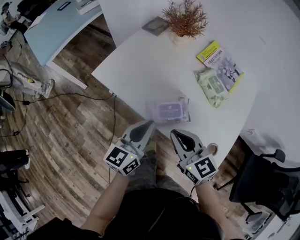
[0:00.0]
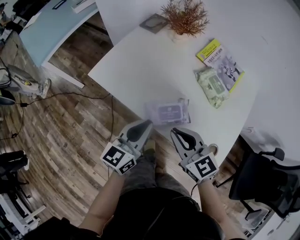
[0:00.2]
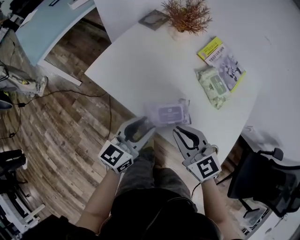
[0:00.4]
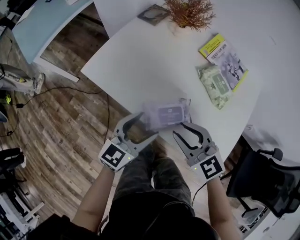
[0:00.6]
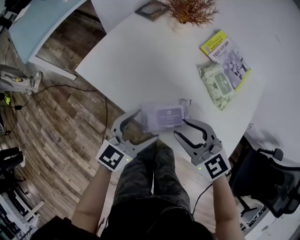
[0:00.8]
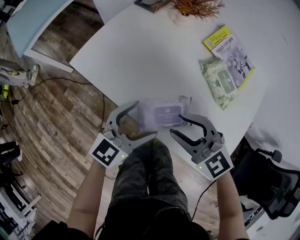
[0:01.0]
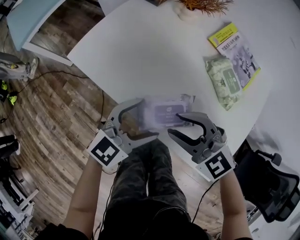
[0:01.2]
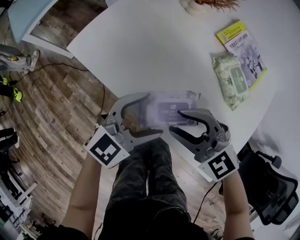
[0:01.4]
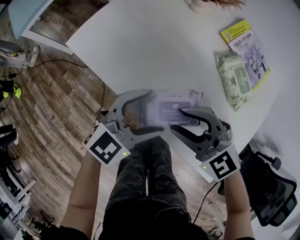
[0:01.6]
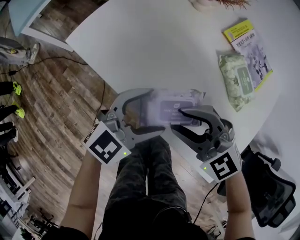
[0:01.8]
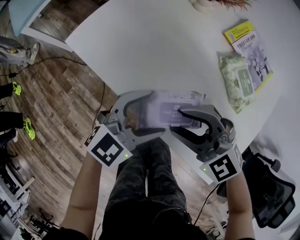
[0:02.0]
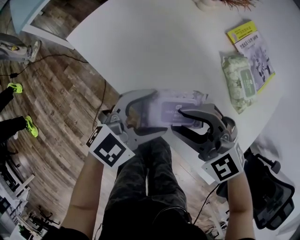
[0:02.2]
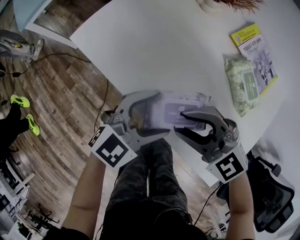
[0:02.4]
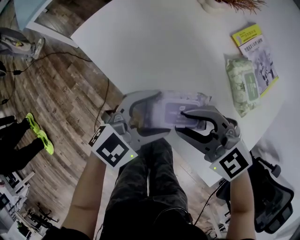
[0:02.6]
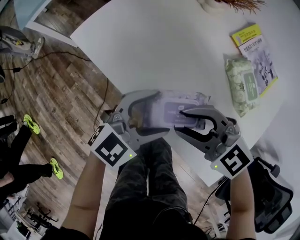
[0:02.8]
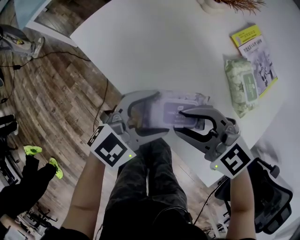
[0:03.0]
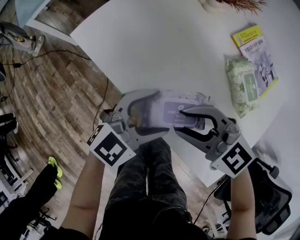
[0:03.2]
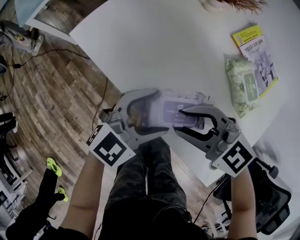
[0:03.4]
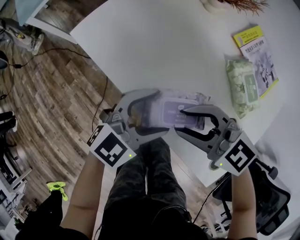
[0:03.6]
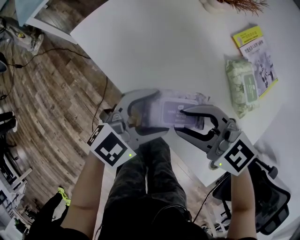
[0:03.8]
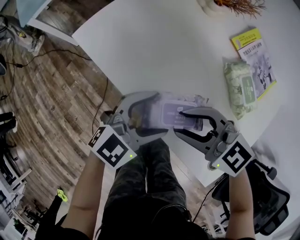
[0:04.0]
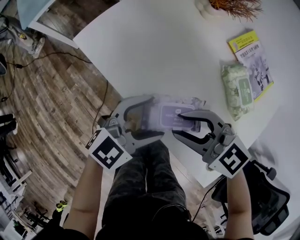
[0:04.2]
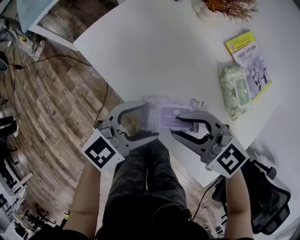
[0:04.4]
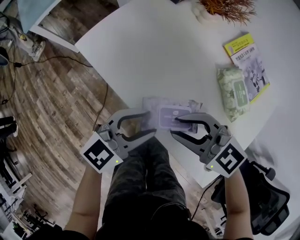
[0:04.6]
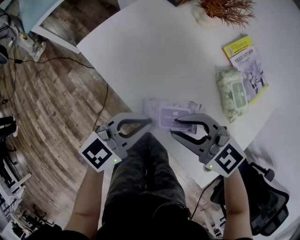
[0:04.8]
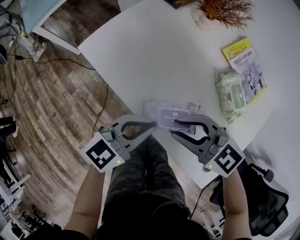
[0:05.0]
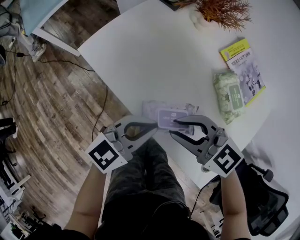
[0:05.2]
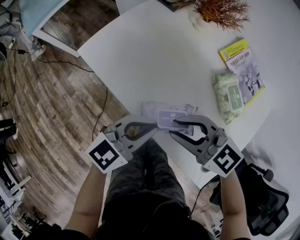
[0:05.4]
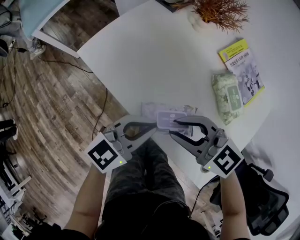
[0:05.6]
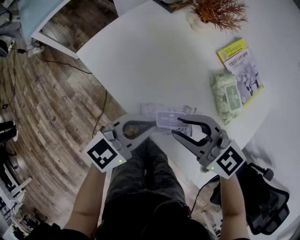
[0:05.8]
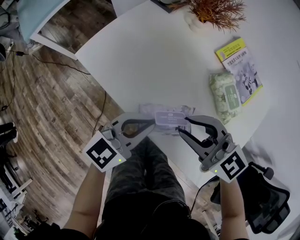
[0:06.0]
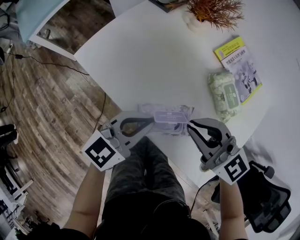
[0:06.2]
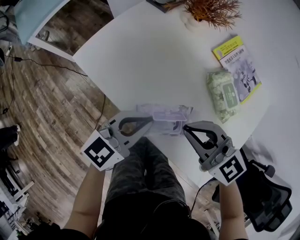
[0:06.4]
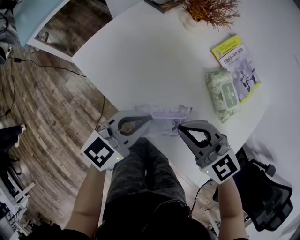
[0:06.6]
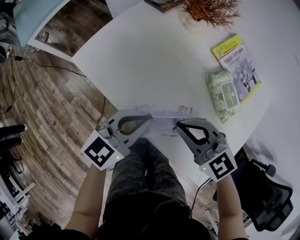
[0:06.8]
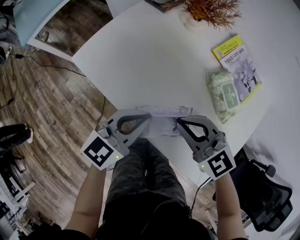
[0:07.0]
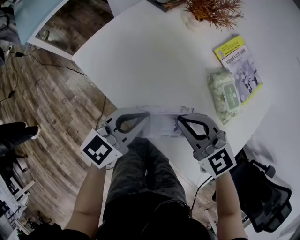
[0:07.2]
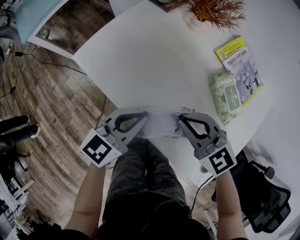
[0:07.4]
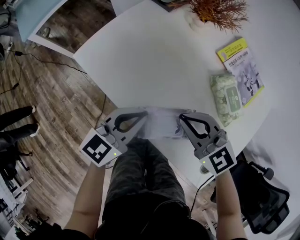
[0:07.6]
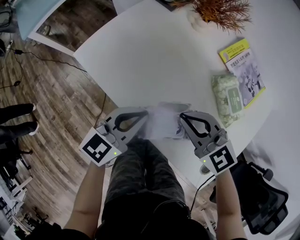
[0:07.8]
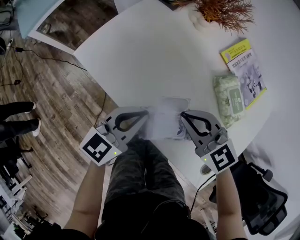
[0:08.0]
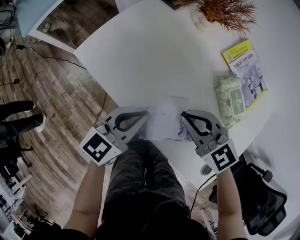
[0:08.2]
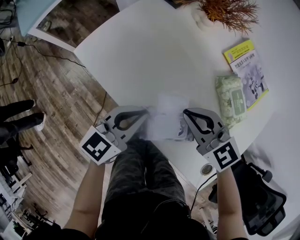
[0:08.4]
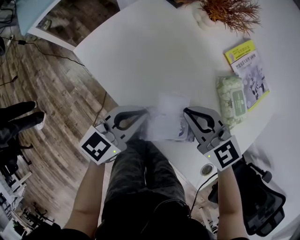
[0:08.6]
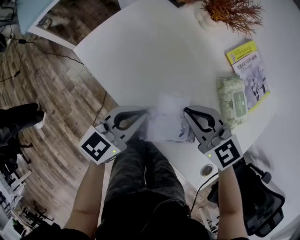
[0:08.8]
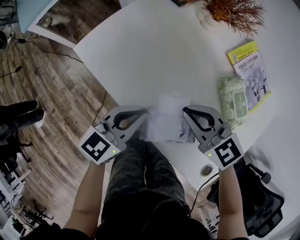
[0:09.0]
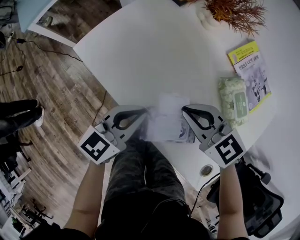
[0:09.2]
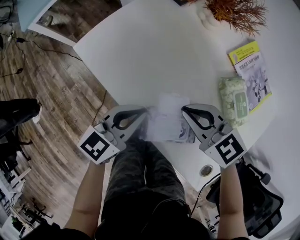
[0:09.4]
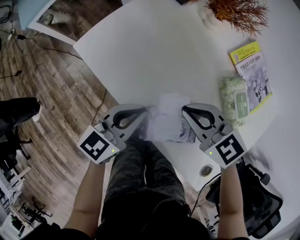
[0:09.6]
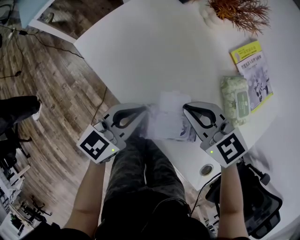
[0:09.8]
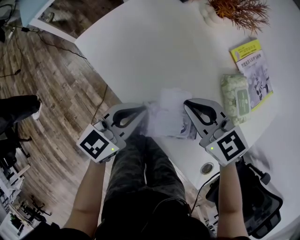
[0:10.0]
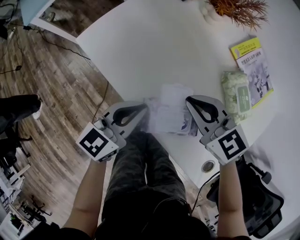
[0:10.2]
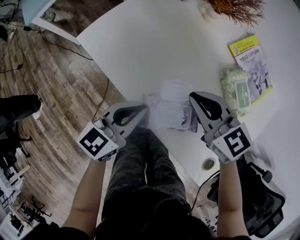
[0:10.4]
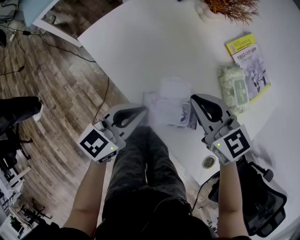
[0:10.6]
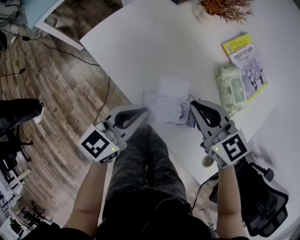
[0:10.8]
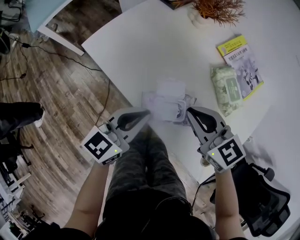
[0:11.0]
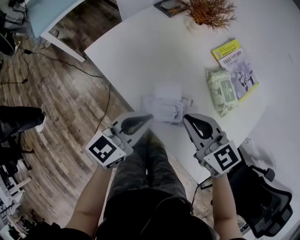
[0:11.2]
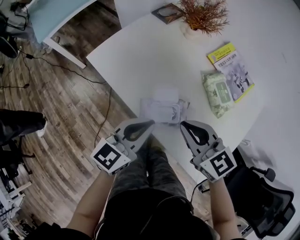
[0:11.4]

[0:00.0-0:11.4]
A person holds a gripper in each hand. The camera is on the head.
0:00.0 to 0:01.4: The left gripper travels downward by roughly 5 cm, changes its angle by about 40 degrees, and opens; the right gripper changes place by about 5 cm, turns by approximately 40 degrees, and opens its fingers.
0:01.4 to 0:04.2: The grippers move only a little.
0:04.2 to 0:05.6: The left gripper closes up.
0:05.6 to 0:07.2: The right gripper closes its fingers.
0:07.2 to 0:10.0: The grippers move only a little.
0:10.0 to 0:11.4: The right gripper is displaced backward and upward by some 10 cm. The left gripper goes roughly 10 cm upward and backward.

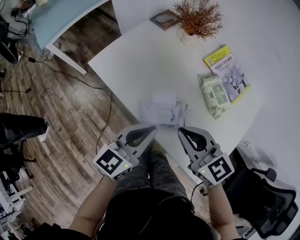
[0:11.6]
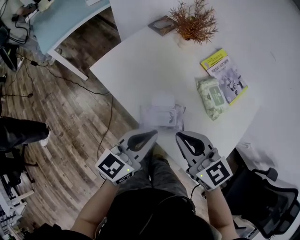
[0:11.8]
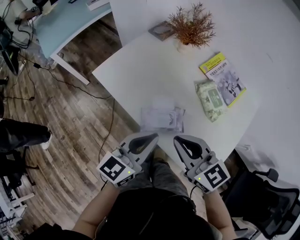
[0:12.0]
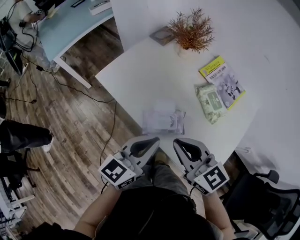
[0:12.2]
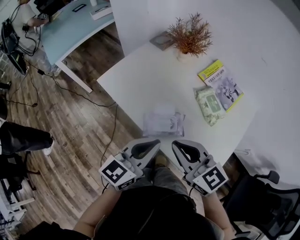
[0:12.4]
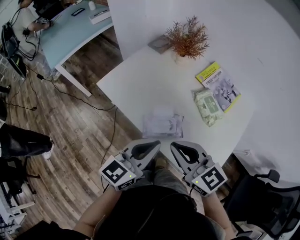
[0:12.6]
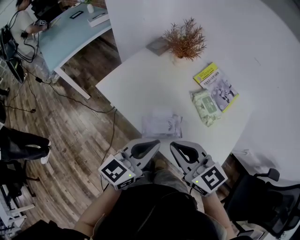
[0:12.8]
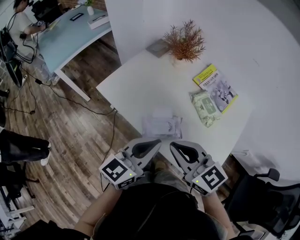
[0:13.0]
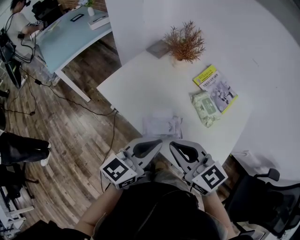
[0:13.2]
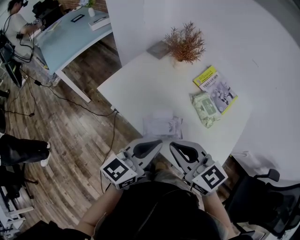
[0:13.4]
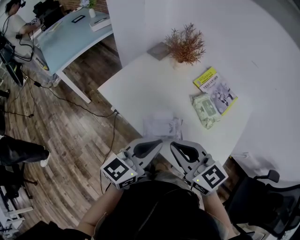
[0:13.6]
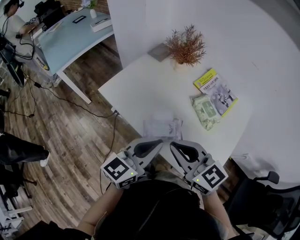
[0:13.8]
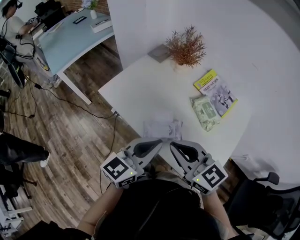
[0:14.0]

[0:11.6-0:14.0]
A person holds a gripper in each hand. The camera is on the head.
0:11.6 to 0:12.8: Both grippers travel together upward, about 5 cm.
0:12.8 to 0:14.0: Neither gripper changes place.

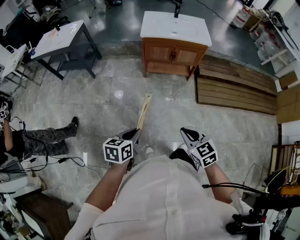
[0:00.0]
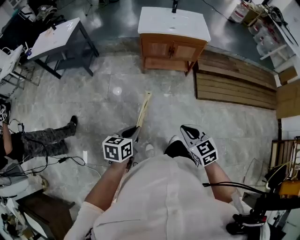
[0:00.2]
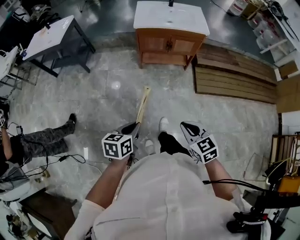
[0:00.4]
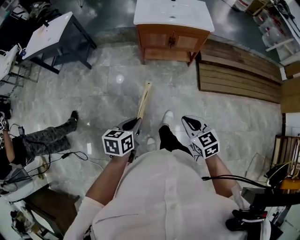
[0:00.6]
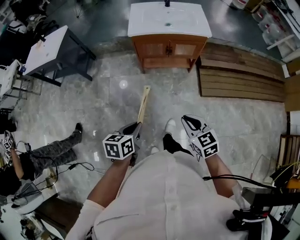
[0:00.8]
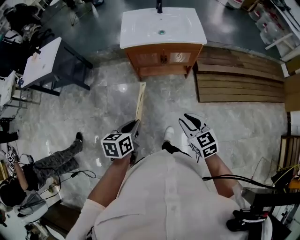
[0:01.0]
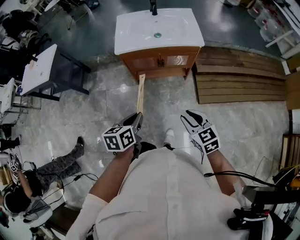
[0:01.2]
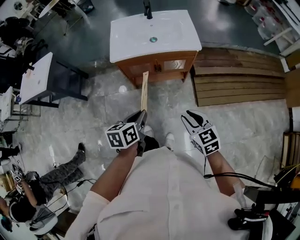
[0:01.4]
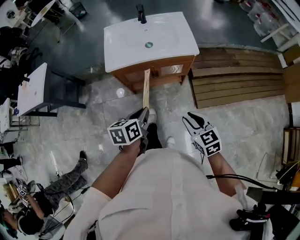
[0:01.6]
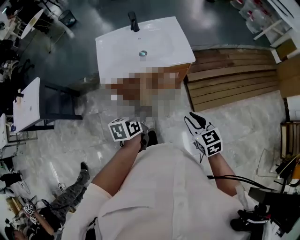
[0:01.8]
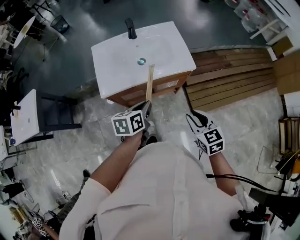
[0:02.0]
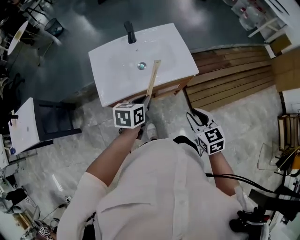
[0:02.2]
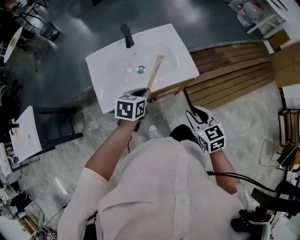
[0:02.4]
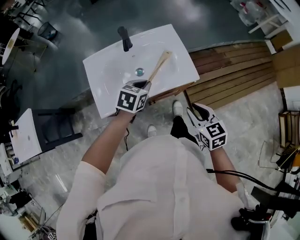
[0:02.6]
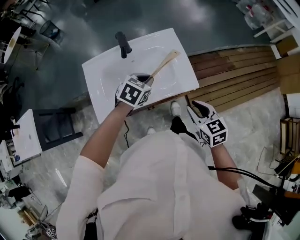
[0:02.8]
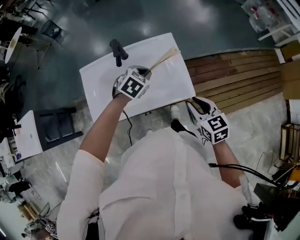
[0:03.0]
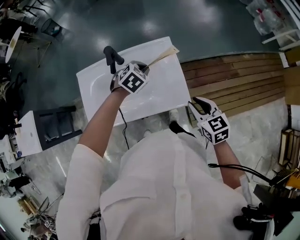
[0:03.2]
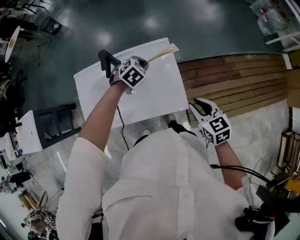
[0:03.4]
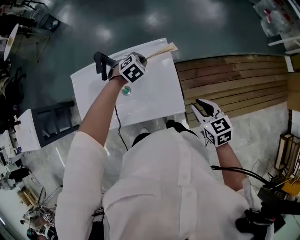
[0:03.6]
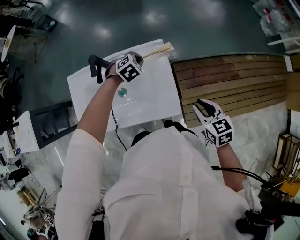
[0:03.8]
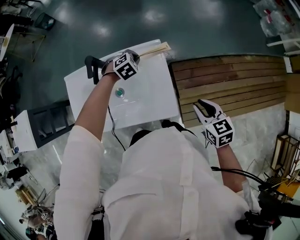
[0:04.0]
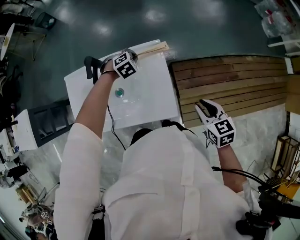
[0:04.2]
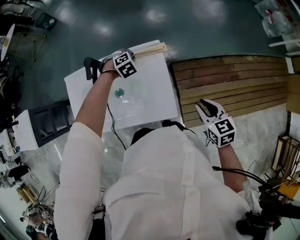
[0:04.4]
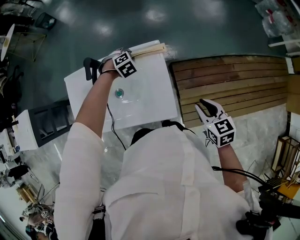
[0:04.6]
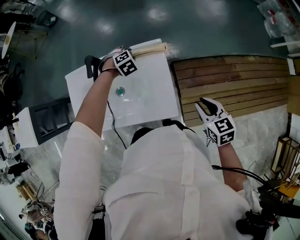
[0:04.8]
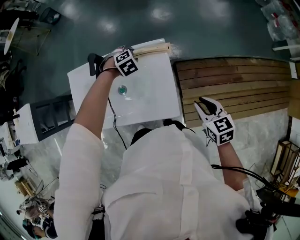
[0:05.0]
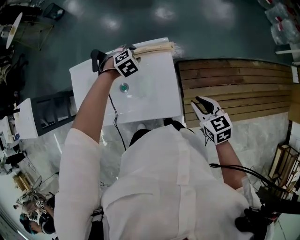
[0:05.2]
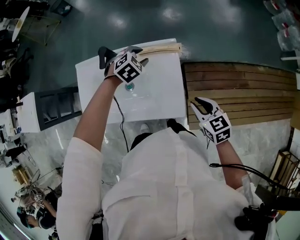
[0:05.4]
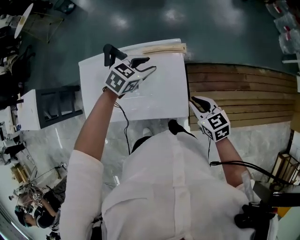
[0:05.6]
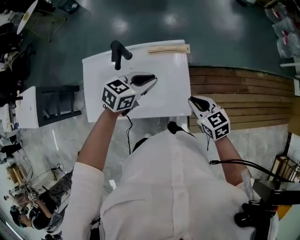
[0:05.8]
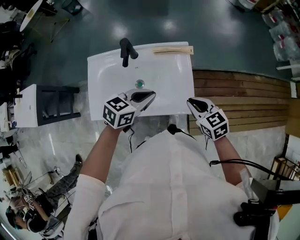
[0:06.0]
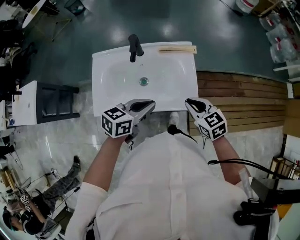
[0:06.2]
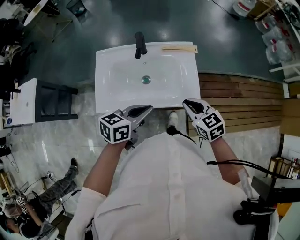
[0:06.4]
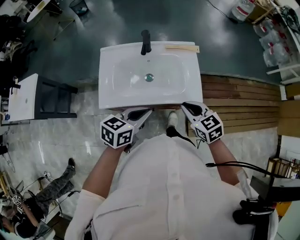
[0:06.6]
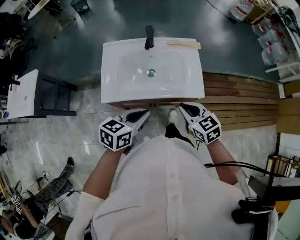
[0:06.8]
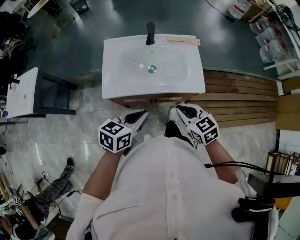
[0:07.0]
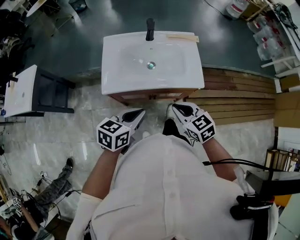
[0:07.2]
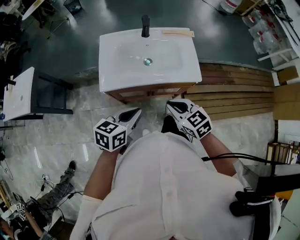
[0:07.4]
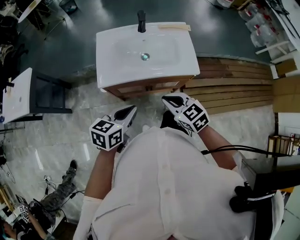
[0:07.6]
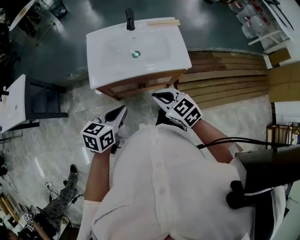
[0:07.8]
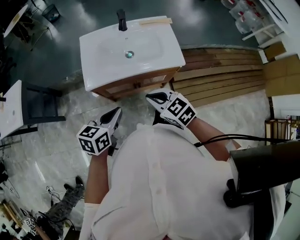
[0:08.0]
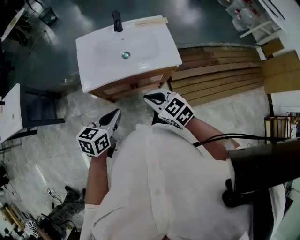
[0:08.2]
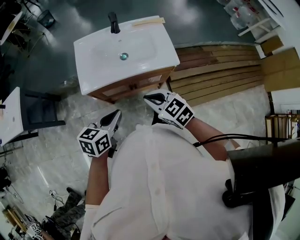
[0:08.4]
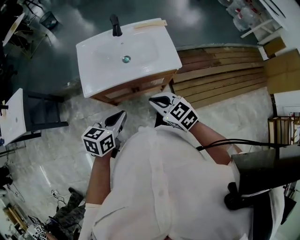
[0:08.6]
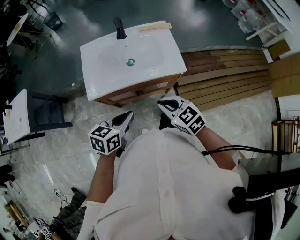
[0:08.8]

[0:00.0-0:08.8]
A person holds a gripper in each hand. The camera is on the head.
0:00.0 to 0:01.4: Both grippers travel together forward, about 35 cm. The right gripper opens up.
0:01.4 to 0:03.0: The two grippers travel together, forward, approximately 50 cm. The left gripper rolls clockwise, seen from behind, by roughly 60 degrees.
0:03.0 to 0:04.4: The left gripper travels forward and downward by about 25 cm, and rotates some 30 degrees. The right gripper heads to the right and forward, covering about 15 cm.
0:04.4 to 0:05.8: The right gripper moves to the left, about 10 cm. The left gripper goes about 25 cm upward and backward, angles its fingers upward, by about 40 degrees, and opens and closes again.
0:05.8 to 0:07.4: Both grippers move backward and to the left, some 35 cm.
0:07.4 to 0:08.8: There are only small adjustments of the grippers.

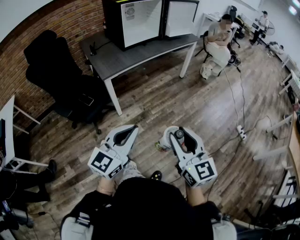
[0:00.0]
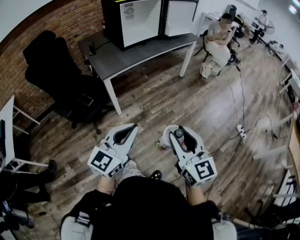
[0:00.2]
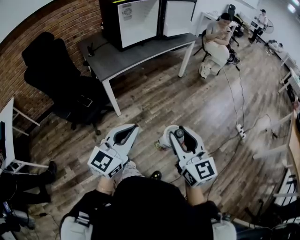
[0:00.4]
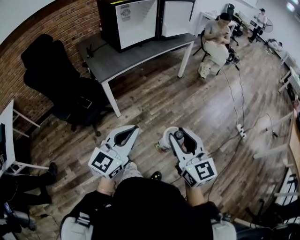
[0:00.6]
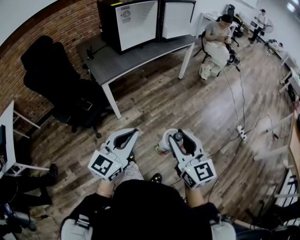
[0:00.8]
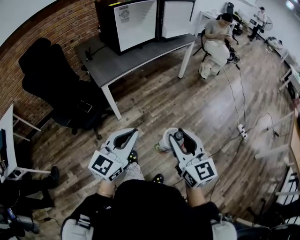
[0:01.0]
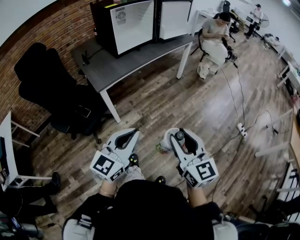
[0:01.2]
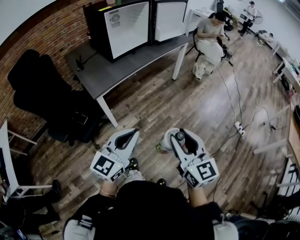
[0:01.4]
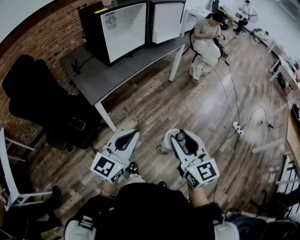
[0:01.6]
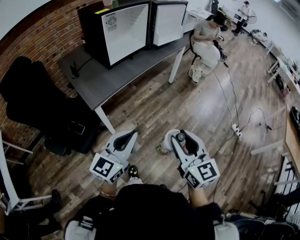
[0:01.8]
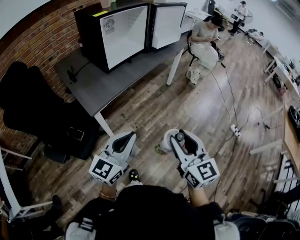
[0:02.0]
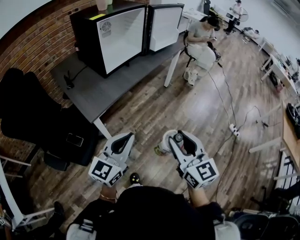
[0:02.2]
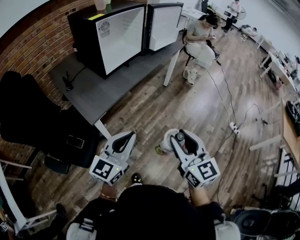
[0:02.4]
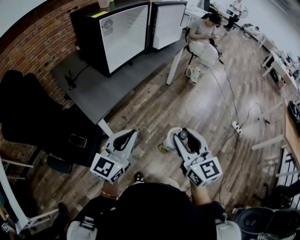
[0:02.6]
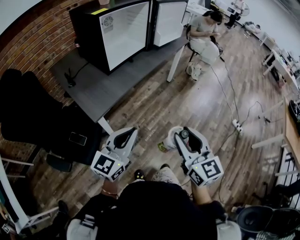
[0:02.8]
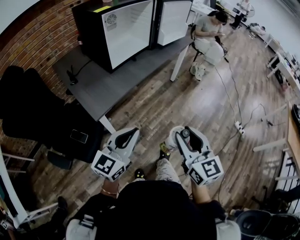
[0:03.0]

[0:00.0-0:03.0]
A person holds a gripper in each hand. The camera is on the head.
0:00.0 to 0:01.6: Both grippers move forward, some 15 cm.
0:01.6 to 0:03.0: Both grippers move forward and to the left, roughly 15 cm.
